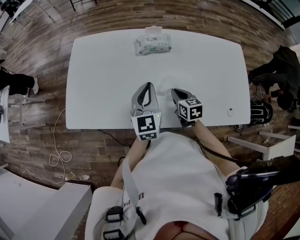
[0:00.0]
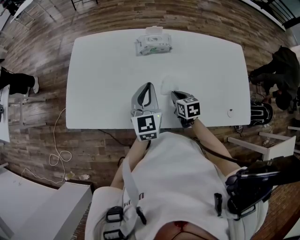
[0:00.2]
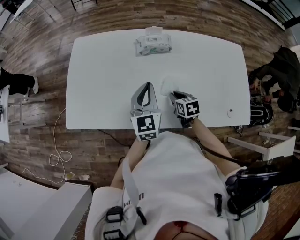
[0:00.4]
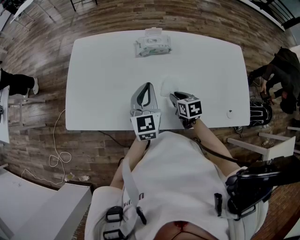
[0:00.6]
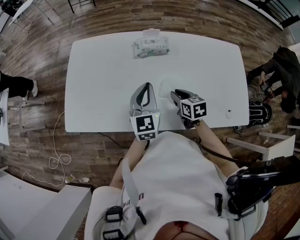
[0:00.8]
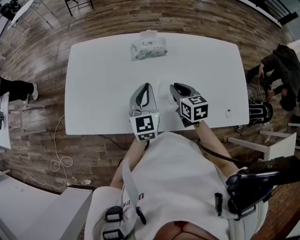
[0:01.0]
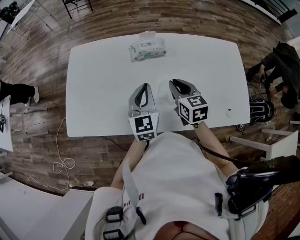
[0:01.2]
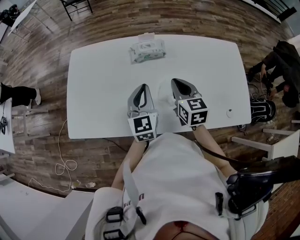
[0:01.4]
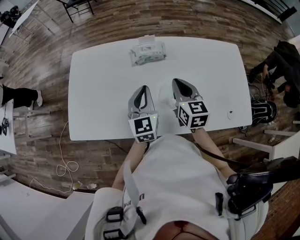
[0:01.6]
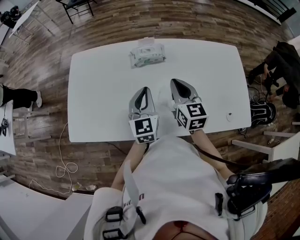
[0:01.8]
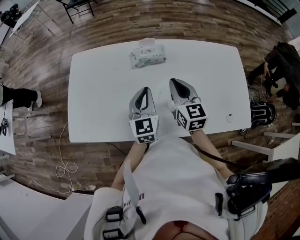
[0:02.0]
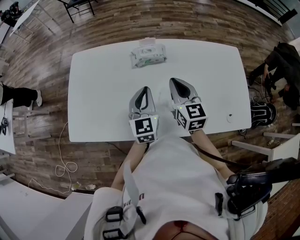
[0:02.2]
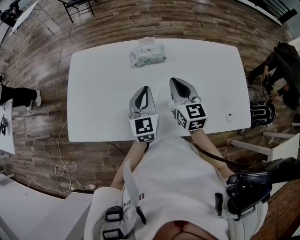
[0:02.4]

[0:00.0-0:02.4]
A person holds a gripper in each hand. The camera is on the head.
0.0 to 1.2 s: The right gripper moves upward, approximately 10 cm.
1.2 to 2.4 s: The right gripper moves some 5 cm.

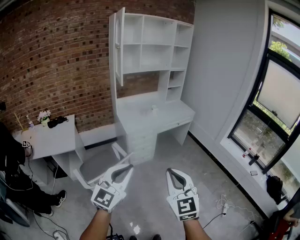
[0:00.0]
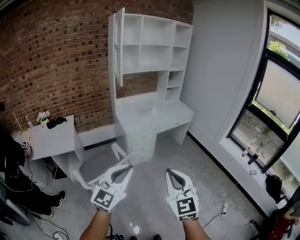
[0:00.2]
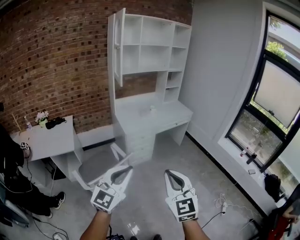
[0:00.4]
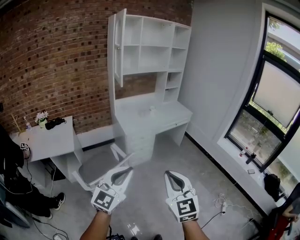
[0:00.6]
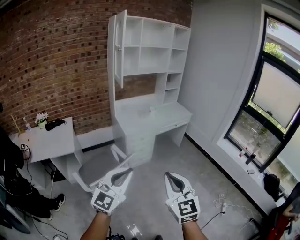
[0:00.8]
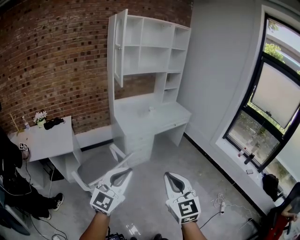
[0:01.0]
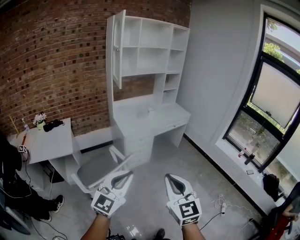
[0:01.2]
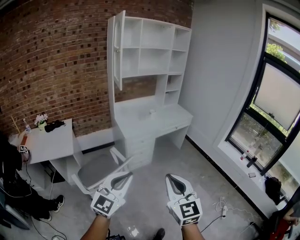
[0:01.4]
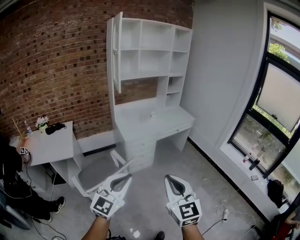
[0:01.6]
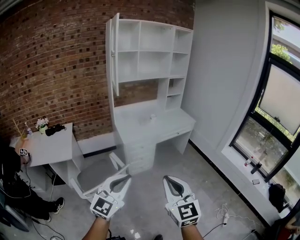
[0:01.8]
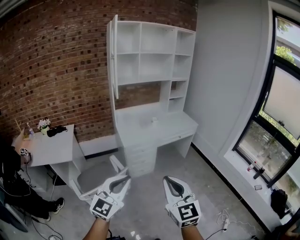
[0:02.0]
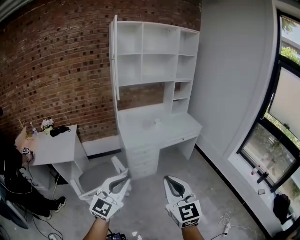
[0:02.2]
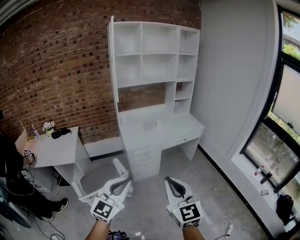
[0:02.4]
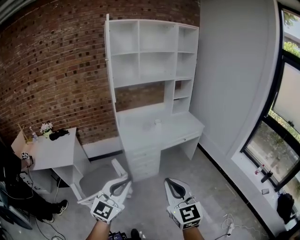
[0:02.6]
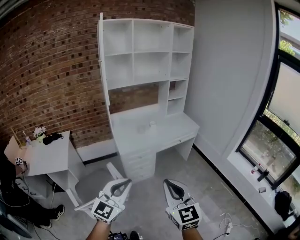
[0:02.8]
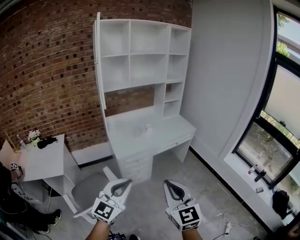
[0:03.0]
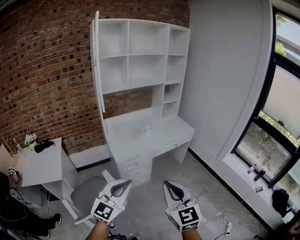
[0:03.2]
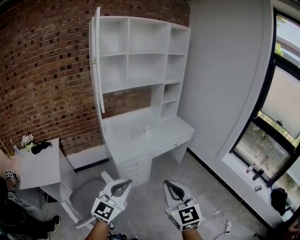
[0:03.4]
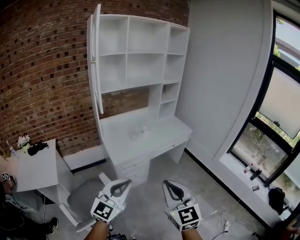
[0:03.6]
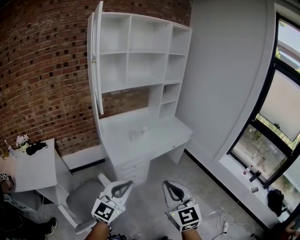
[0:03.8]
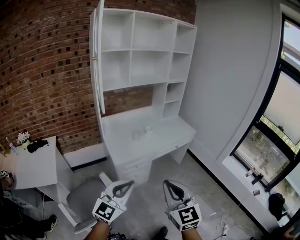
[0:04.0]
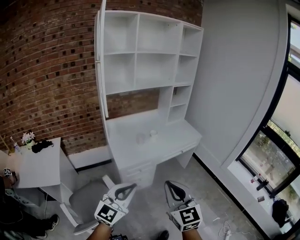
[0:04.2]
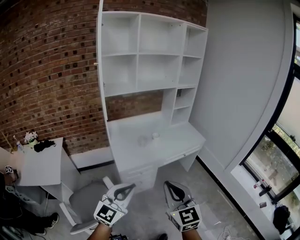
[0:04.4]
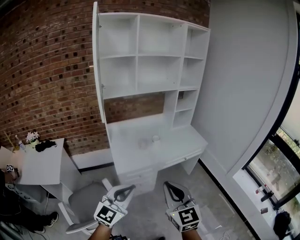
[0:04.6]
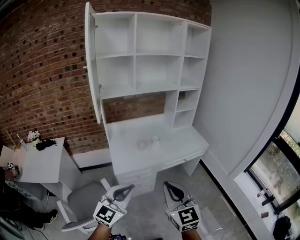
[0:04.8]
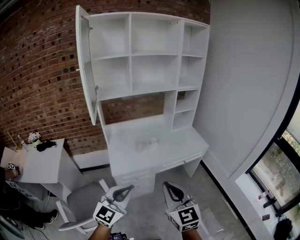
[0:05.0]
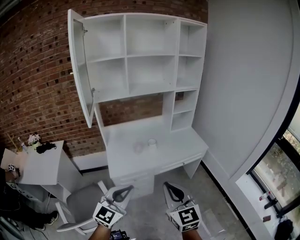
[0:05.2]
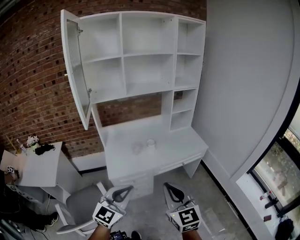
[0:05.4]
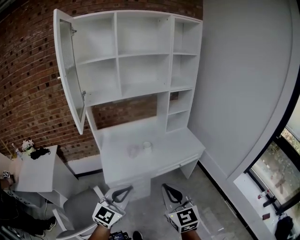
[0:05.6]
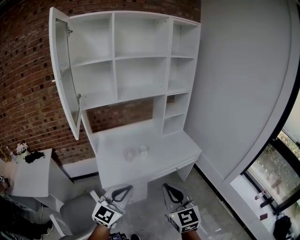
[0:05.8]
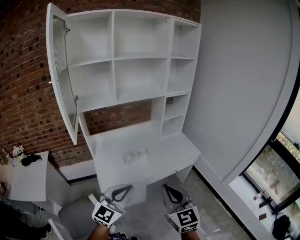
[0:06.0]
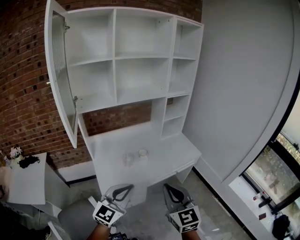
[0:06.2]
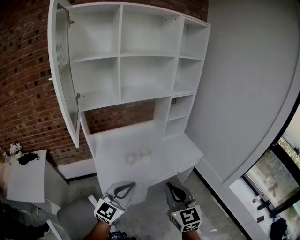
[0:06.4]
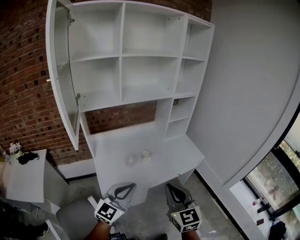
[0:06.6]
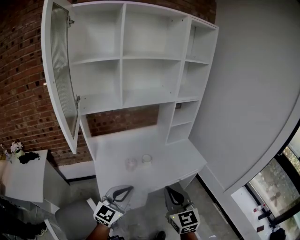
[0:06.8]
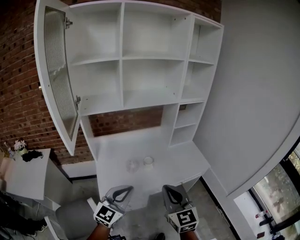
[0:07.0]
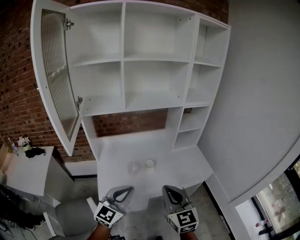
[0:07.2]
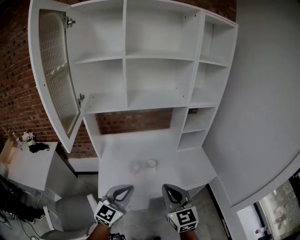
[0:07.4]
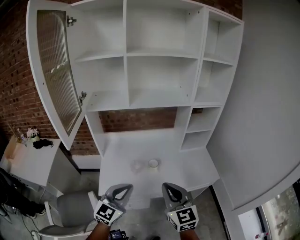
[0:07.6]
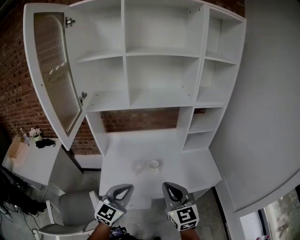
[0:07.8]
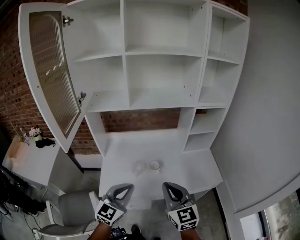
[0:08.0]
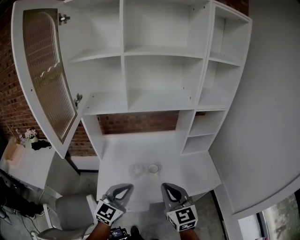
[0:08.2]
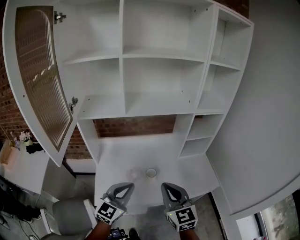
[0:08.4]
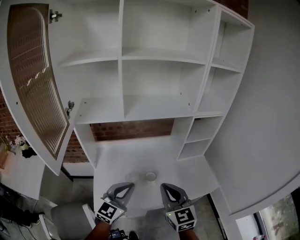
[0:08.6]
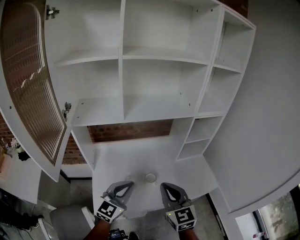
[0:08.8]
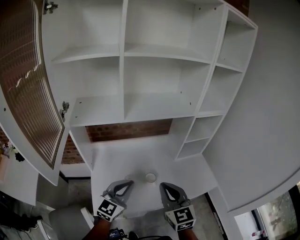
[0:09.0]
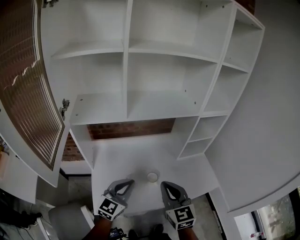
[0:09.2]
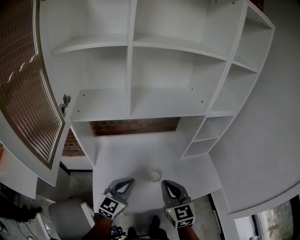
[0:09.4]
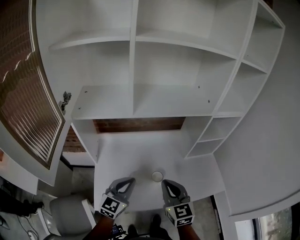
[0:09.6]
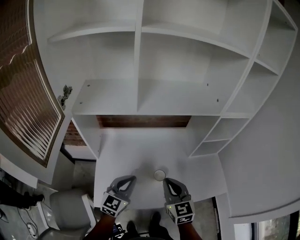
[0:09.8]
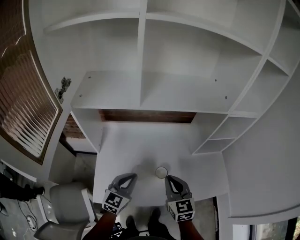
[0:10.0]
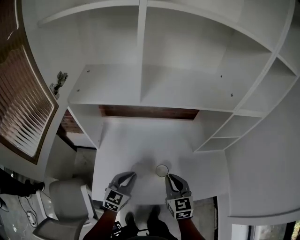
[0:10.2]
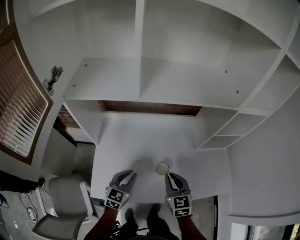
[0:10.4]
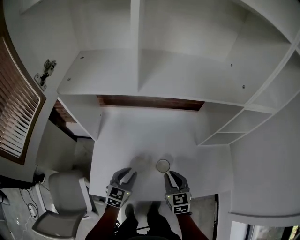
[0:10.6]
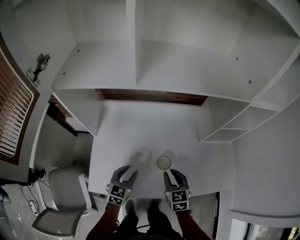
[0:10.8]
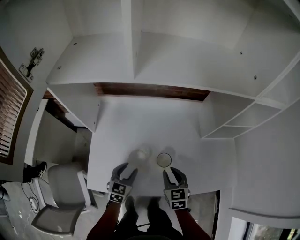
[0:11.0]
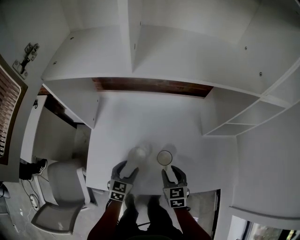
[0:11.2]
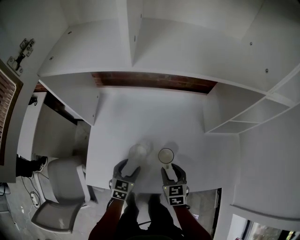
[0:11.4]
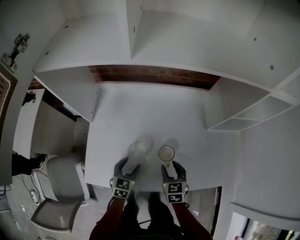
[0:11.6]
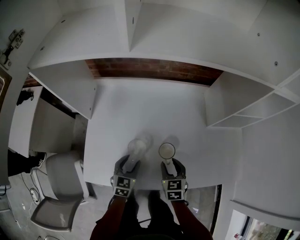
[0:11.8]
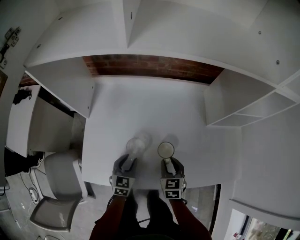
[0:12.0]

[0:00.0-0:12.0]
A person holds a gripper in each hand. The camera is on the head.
0.0 to 1.6 s: There are only small adjustments of the grippers.
1.6 to 3.0 s: Both grippers travel together forward, about 20 cm.
3.0 to 4.4 s: The two grippers go roughly 20 cm forward.
4.4 to 6.0 s: The two grippers go about 25 cm forward and to the right.
6.0 to 7.6 s: The grippers both shift forward by about 20 cm.
7.6 to 9.0 s: The right gripper goes about 20 cm forward and to the left. The left gripper is displaced forward by some 20 cm.
9.0 to 10.4 s: The two grippers go some 25 cm downward and forward. The left gripper turns by approximately 30 degrees.
10.4 to 12.0 s: Both grippers move downward, some 20 cm. The right gripper opens; the left gripper opens up.

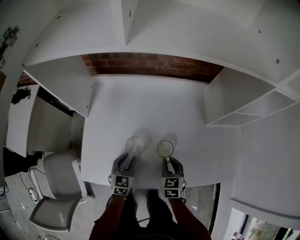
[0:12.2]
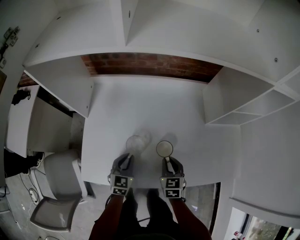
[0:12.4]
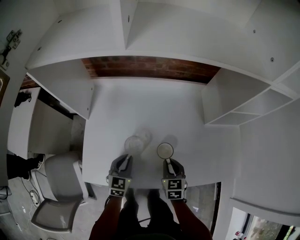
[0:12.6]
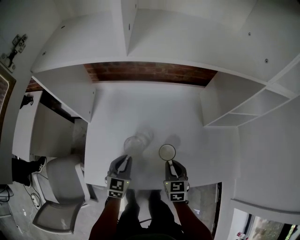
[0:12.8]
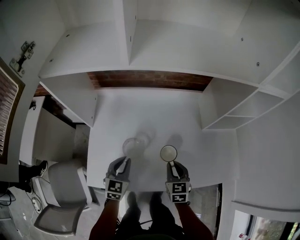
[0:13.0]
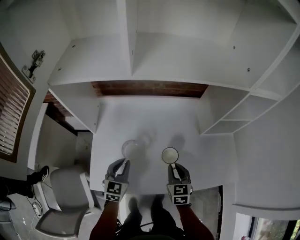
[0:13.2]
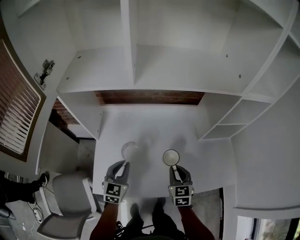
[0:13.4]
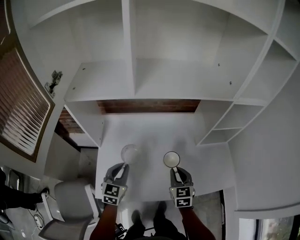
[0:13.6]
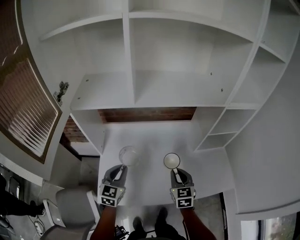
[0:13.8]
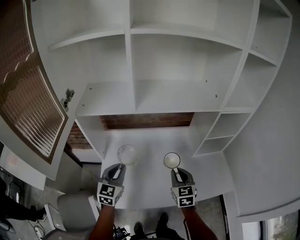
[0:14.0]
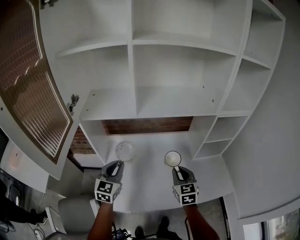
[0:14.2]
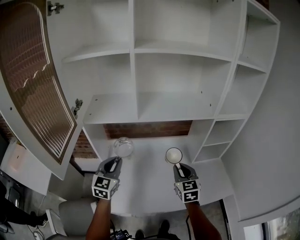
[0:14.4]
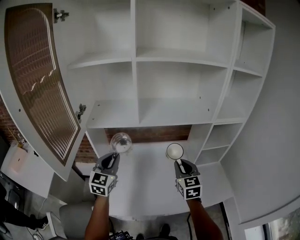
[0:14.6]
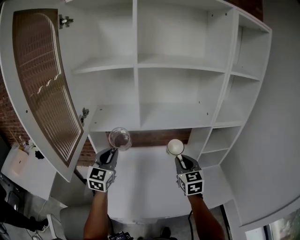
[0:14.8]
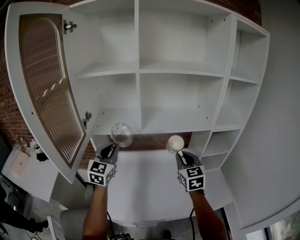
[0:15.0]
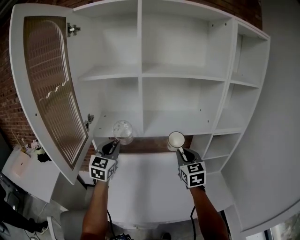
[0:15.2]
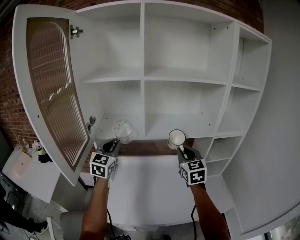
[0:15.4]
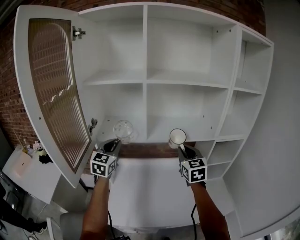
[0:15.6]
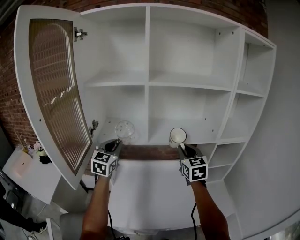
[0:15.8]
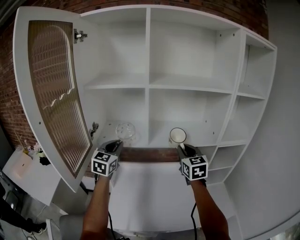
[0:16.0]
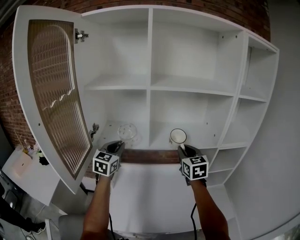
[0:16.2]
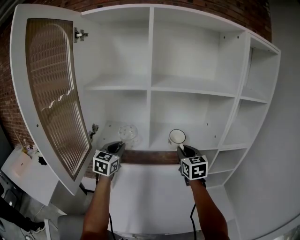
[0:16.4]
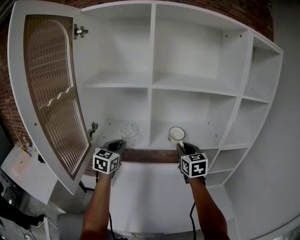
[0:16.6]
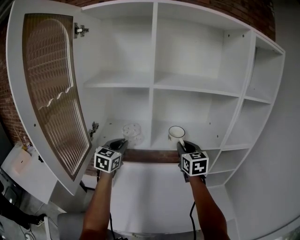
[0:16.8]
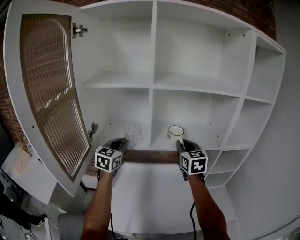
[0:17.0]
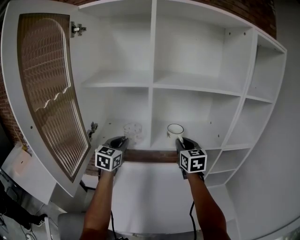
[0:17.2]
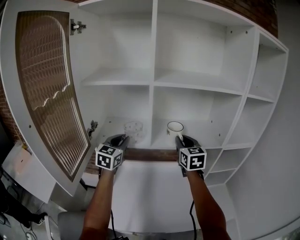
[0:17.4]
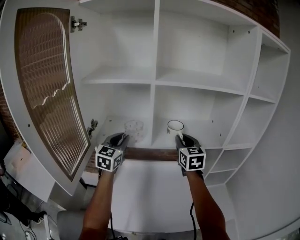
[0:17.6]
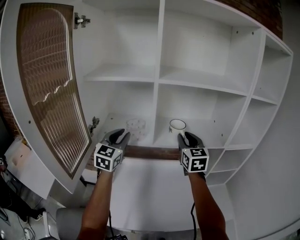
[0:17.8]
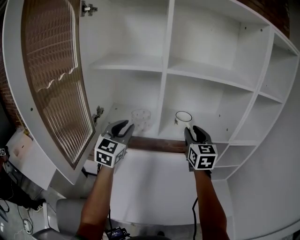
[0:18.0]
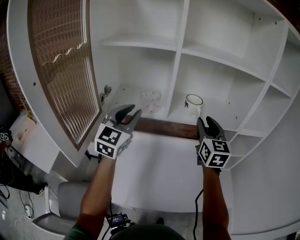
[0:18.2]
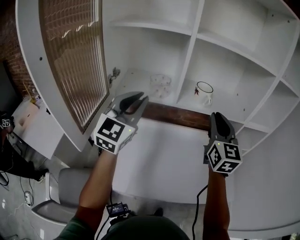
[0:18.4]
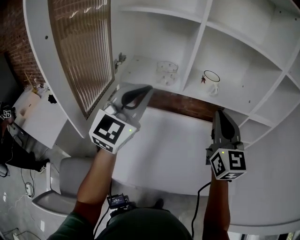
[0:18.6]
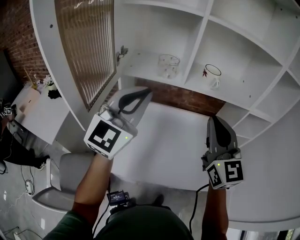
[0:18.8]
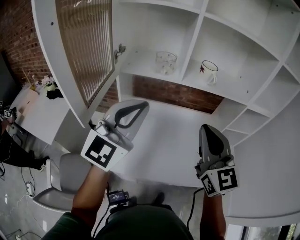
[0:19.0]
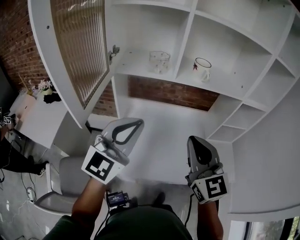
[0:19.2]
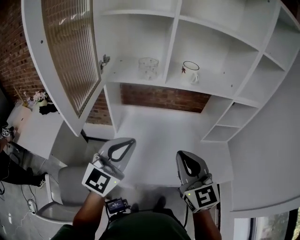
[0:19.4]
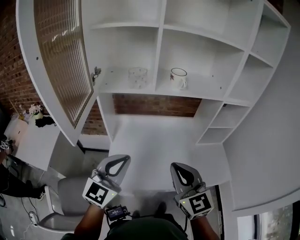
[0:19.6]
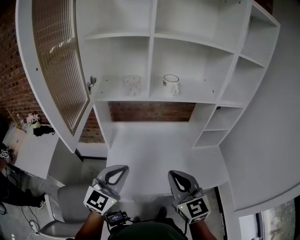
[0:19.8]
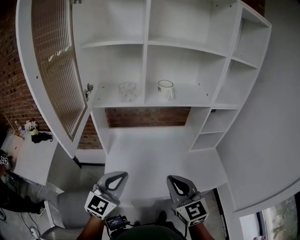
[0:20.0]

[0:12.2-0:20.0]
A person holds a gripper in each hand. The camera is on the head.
12.2 to 13.8 s: The grippers both shift upward by about 25 cm.
13.8 to 15.4 s: Both grippers move upward, roughly 30 cm.
15.4 to 16.8 s: The grippers both shift forward by approximately 10 cm.
16.8 to 18.4 s: The left gripper goes roughly 10 cm backward and upward, and changes its angle by approximately 20 degrees. Meanwhile the right gripper moves backward, some 10 cm.
18.4 to 20.0 s: The two grippers go about 30 cm backward and downward. The left gripper rotates about 20 degrees.

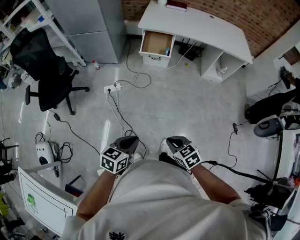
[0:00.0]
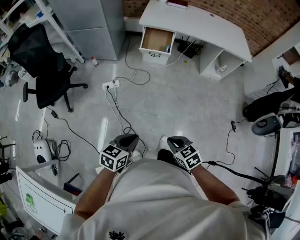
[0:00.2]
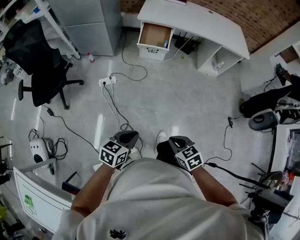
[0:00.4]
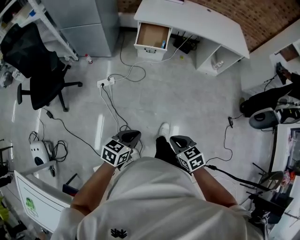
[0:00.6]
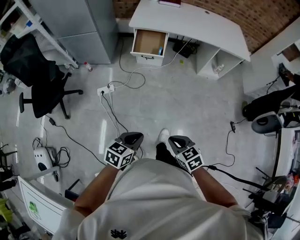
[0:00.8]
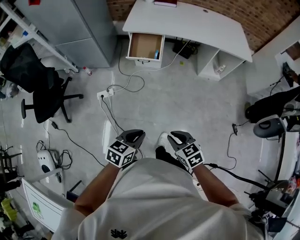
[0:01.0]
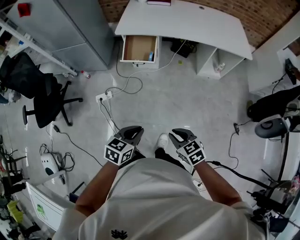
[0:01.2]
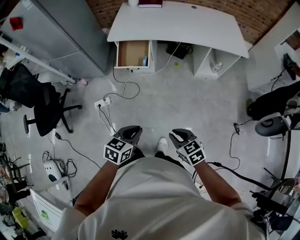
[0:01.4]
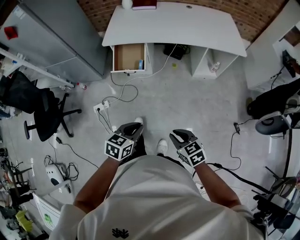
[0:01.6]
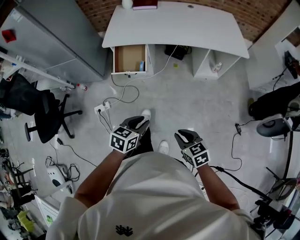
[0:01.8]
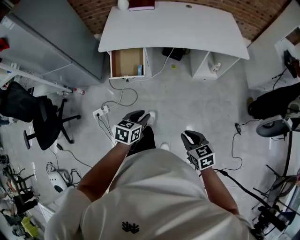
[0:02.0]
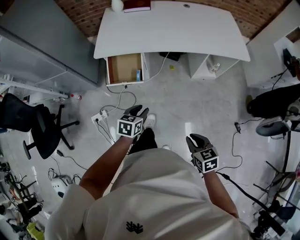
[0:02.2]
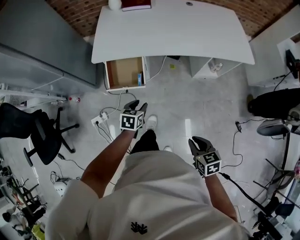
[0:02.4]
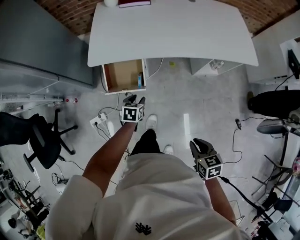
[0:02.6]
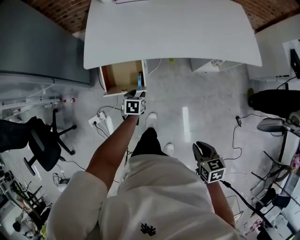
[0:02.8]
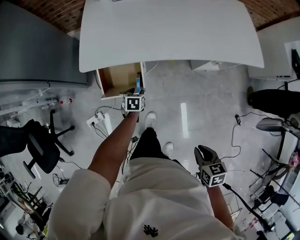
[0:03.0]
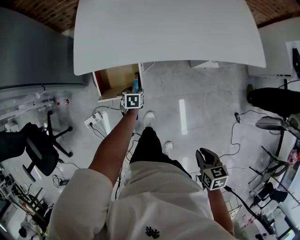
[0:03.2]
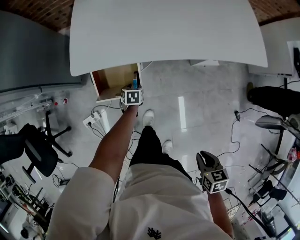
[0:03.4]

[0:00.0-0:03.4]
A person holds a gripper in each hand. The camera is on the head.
0.0 to 1.6 s: The grippers both shift forward and to the right by about 40 cm.
1.6 to 3.4 s: The right gripper goes about 30 cm forward, and rotates approximately 40 degrees; the left gripper moves forward and downward, some 70 cm, changes its angle by about 30 degrees, and opens up.
